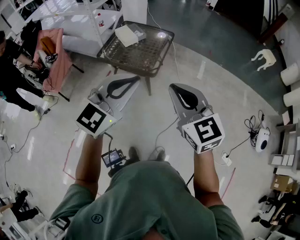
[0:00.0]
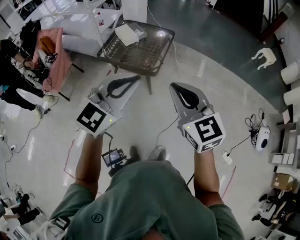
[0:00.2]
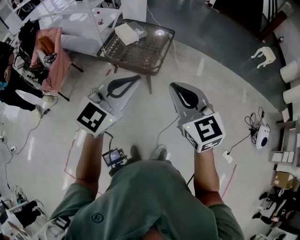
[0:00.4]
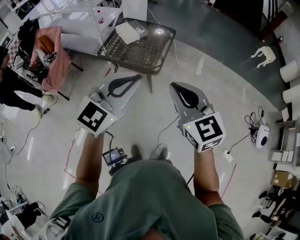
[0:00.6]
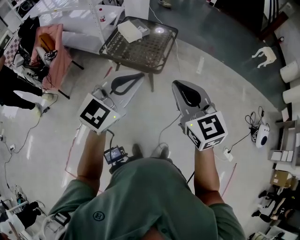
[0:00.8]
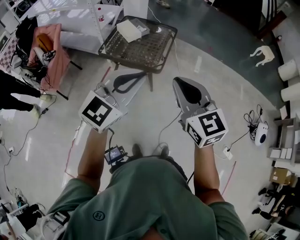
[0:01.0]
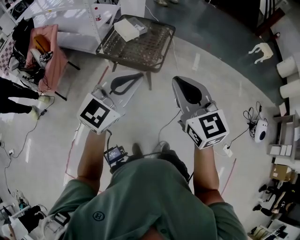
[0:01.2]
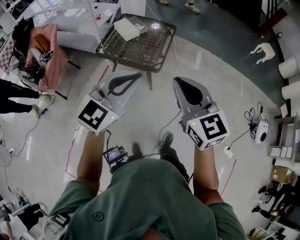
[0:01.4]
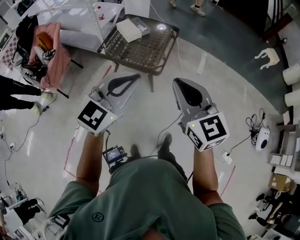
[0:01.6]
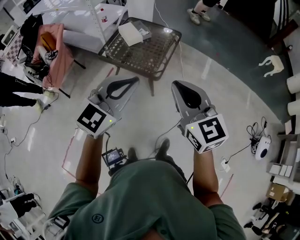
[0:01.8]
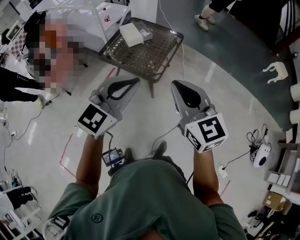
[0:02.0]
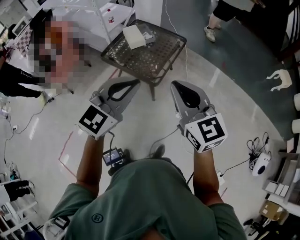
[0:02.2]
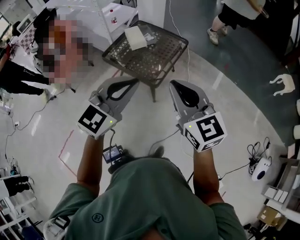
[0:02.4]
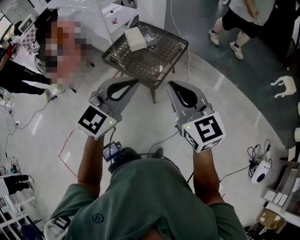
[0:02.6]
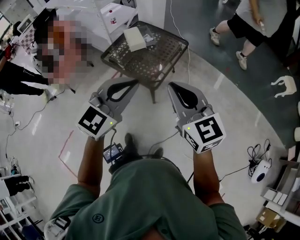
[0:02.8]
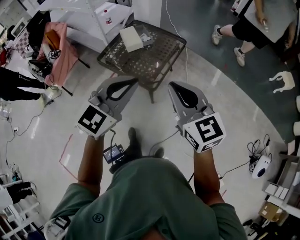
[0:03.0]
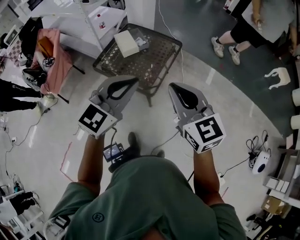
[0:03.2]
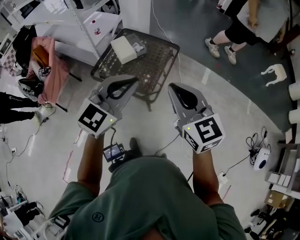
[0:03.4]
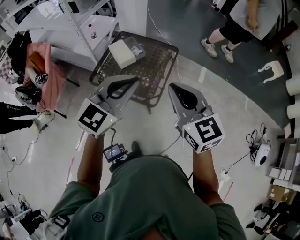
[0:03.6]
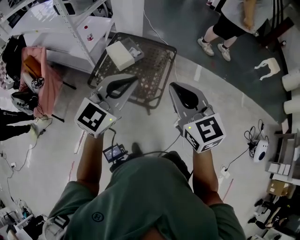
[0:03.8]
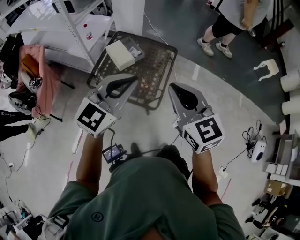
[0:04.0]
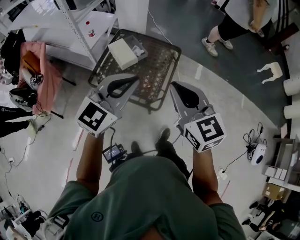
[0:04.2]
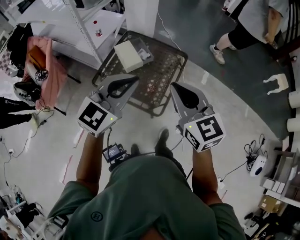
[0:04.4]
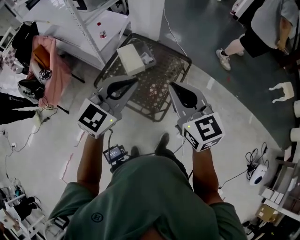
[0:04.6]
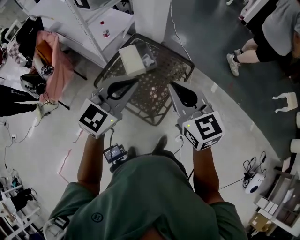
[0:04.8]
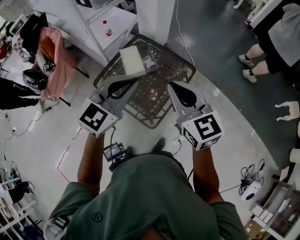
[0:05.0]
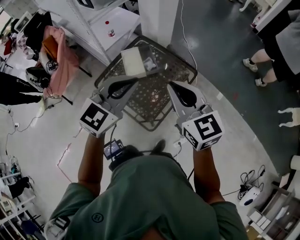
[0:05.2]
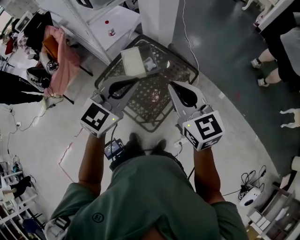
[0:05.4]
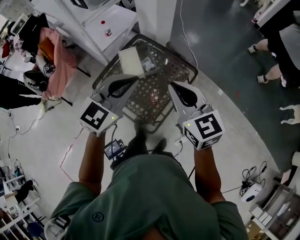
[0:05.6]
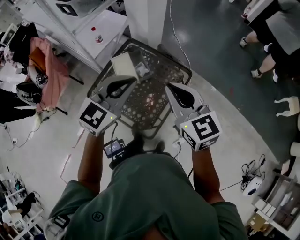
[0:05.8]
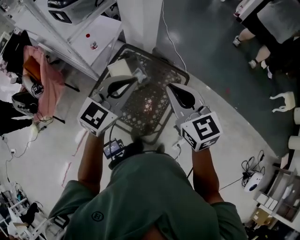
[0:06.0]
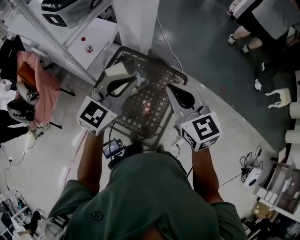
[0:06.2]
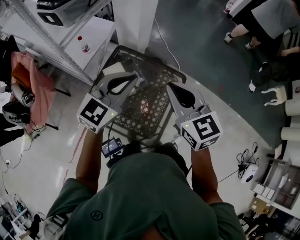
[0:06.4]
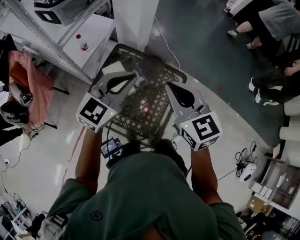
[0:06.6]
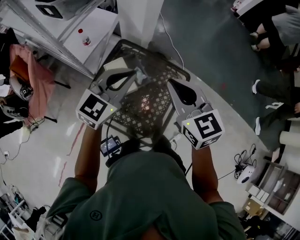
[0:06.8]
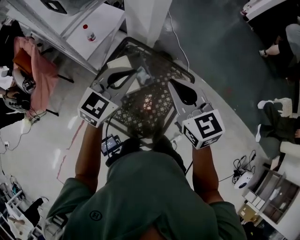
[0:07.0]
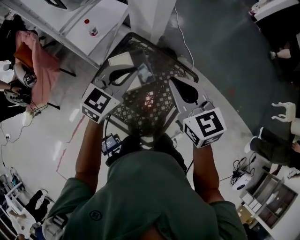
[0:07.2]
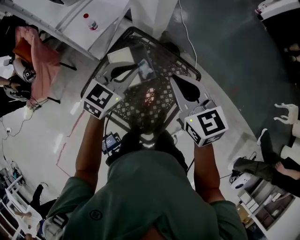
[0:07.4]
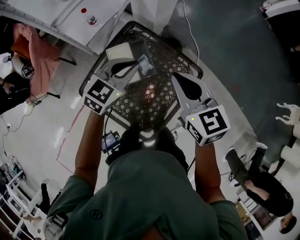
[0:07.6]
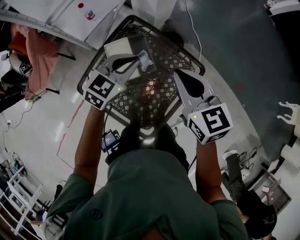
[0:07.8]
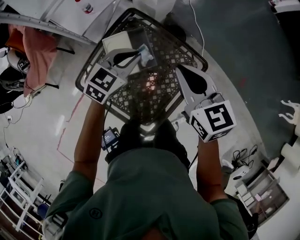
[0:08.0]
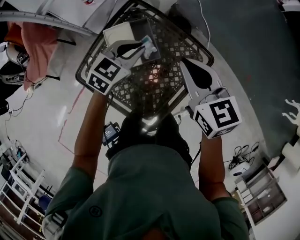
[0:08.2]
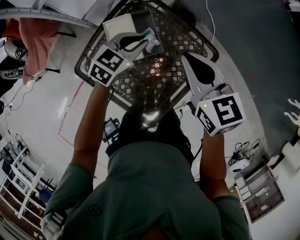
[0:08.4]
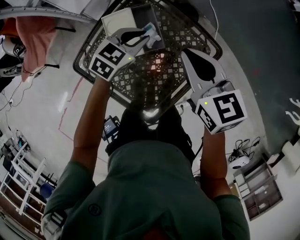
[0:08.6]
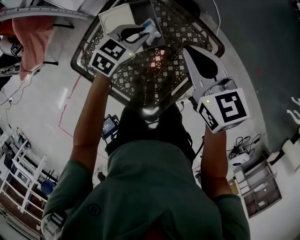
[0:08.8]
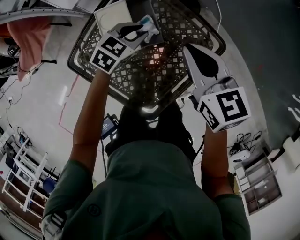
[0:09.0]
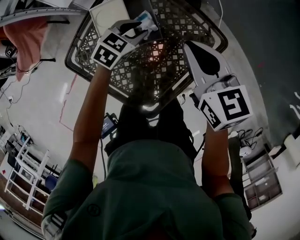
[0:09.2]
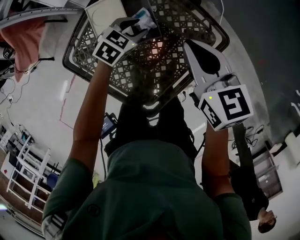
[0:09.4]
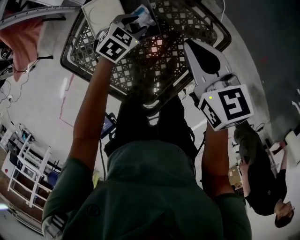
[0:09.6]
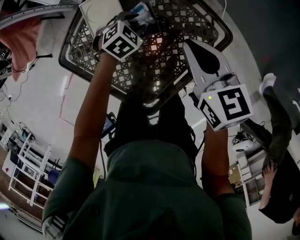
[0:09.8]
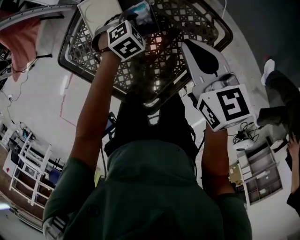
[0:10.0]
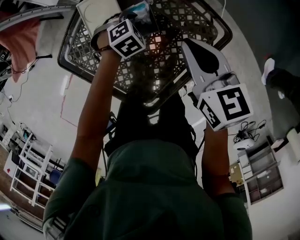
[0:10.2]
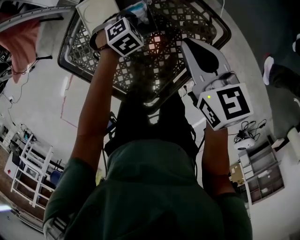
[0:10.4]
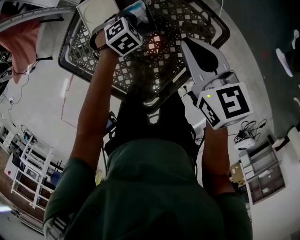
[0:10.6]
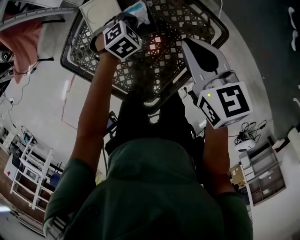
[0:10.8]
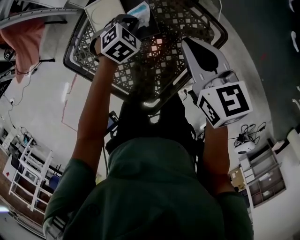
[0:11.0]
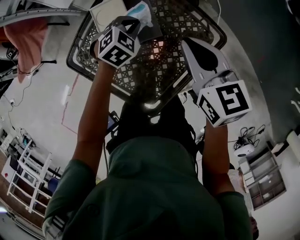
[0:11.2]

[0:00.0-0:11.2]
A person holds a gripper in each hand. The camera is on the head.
0:00.0 to 0:01.6: The grippers both shift forward and to the left by some 10 cm.
0:01.6 to 0:03.2: The grippers both shift forward and to the right by approximately 20 cm.
0:03.2 to 0:04.8: The two grippers go roughly 30 cm forward.
0:04.8 to 0:06.4: Both grippers travel together forward, about 25 cm.
0:06.4 to 0:08.0: Both grippers move downward and forward, about 25 cm. The left gripper turns by some 30 degrees.
0:08.0 to 0:09.6: The left gripper shifts some 30 cm downward, turns by approximately 30 degrees, and opens, while the right gripper shifts some 20 cm downward.
0:09.6 to 0:11.2: The two grippers go some 10 cm upward. The left gripper closes.

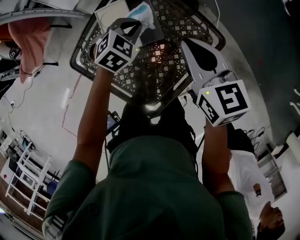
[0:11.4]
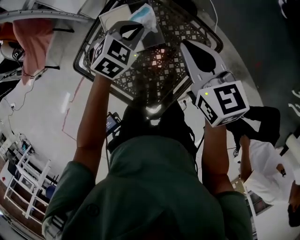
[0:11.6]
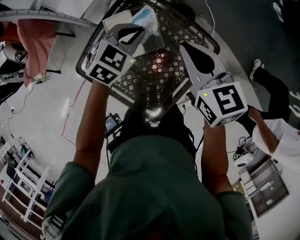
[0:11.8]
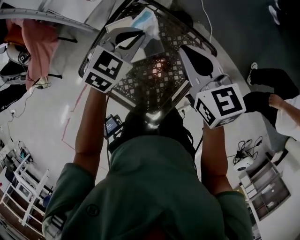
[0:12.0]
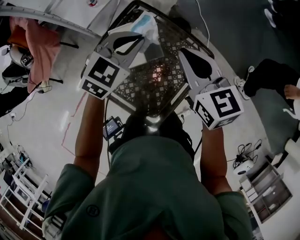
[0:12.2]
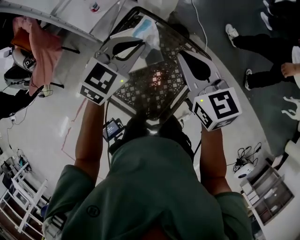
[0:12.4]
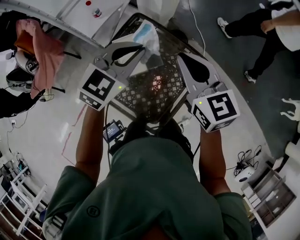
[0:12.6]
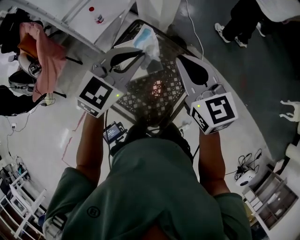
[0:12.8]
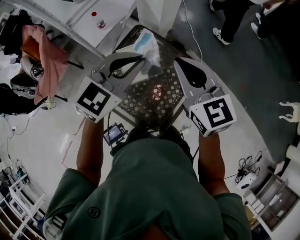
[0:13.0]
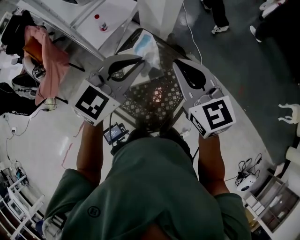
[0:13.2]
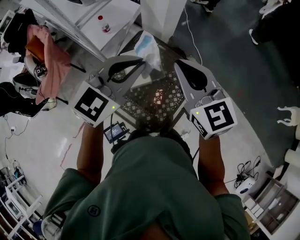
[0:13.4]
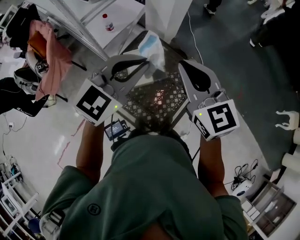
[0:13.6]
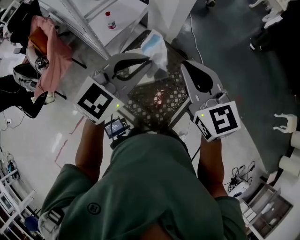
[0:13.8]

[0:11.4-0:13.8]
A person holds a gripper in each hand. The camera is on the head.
0:11.4 to 0:12.6: The left gripper moves upward, about 30 cm, and turns by some 30 degrees, while the right gripper moves upward, approximately 15 cm.
0:12.6 to 0:13.8: Both grippers move upward and backward, about 15 cm.

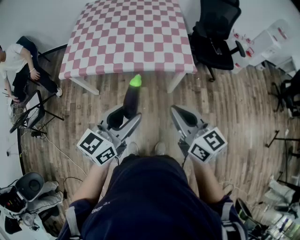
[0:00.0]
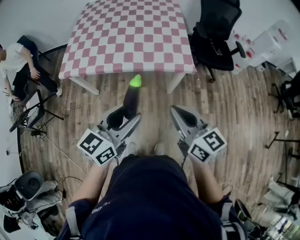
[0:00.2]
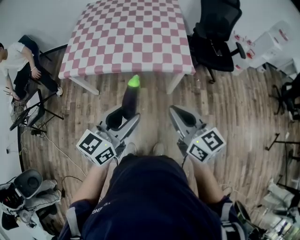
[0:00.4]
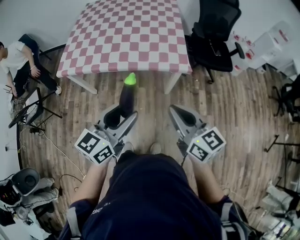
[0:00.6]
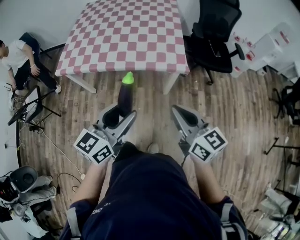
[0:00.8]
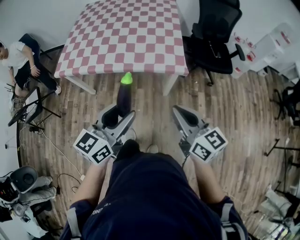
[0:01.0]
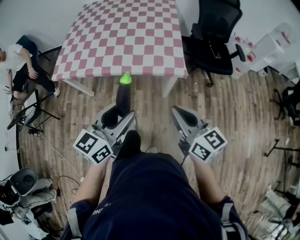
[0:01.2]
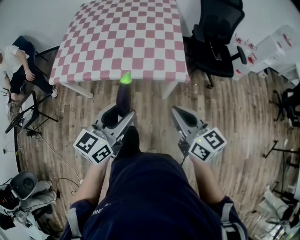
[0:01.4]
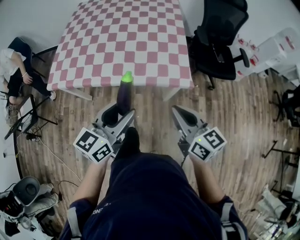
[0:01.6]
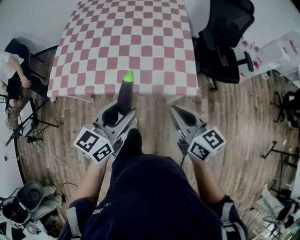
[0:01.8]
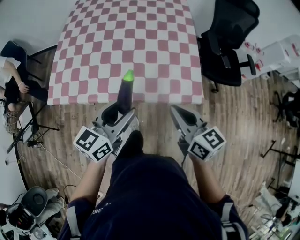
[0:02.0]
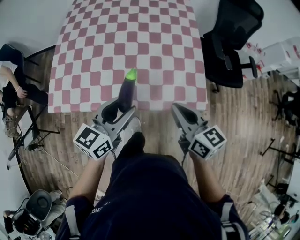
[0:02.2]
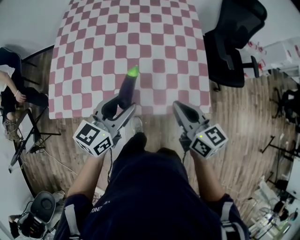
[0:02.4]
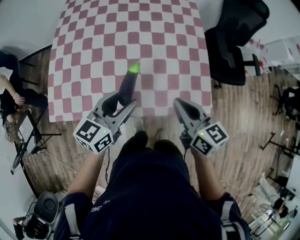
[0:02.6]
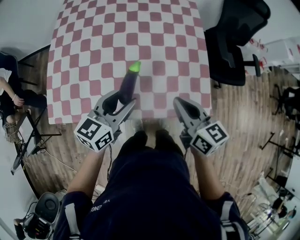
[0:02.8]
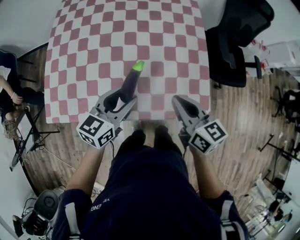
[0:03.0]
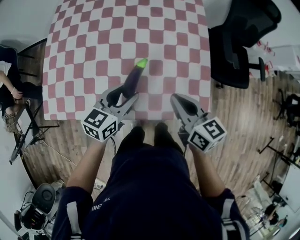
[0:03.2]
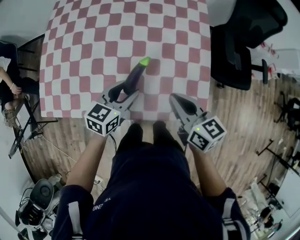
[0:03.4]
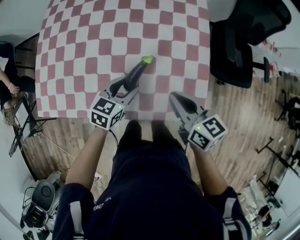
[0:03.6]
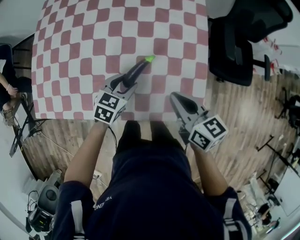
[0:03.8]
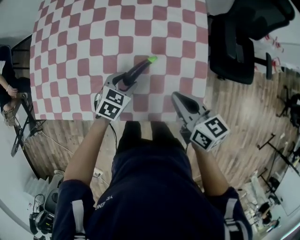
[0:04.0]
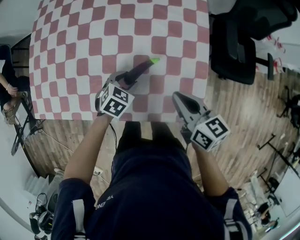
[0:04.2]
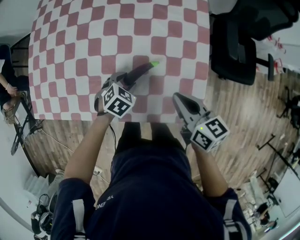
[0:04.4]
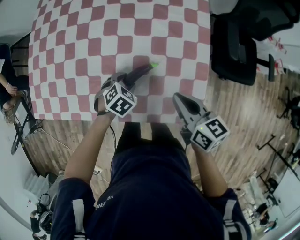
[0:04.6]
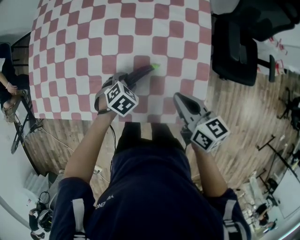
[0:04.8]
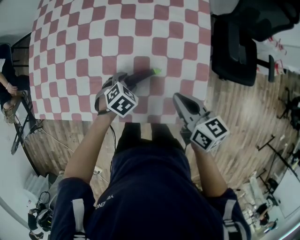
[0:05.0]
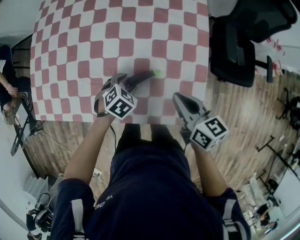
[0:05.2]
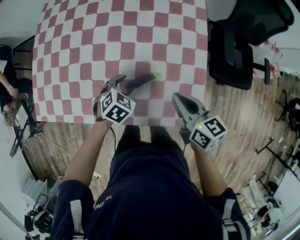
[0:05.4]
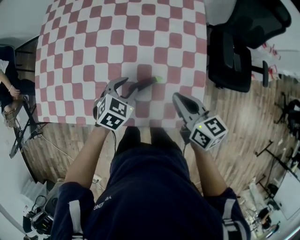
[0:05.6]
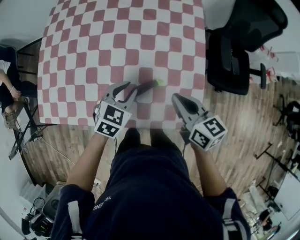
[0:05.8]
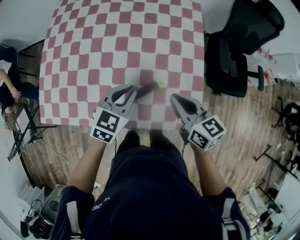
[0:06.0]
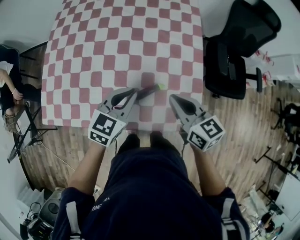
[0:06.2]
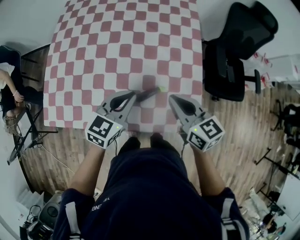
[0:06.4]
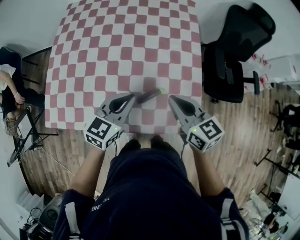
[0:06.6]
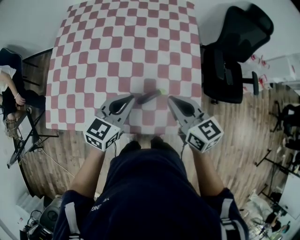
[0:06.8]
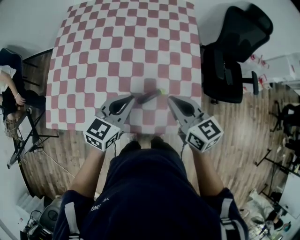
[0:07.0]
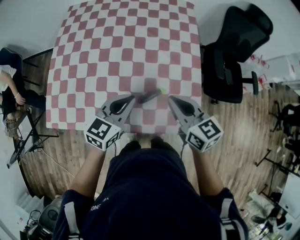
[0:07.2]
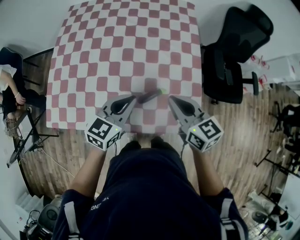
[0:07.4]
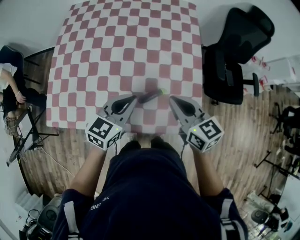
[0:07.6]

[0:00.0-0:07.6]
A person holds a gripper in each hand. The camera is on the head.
0:00.0 to 0:01.6: The left gripper travels forward by about 15 cm. Meanwhile the right gripper is displaced forward and to the right by approximately 15 cm.
0:01.6 to 0:03.0: Both grippers move forward, about 30 cm.
0:03.0 to 0:04.6: The right gripper heads downward, to the right and forward, covering about 15 cm, while the left gripper shifts roughly 25 cm downward, and points its fingers some 50 degrees further downward.
0:04.6 to 0:06.0: The right gripper goes roughly 5 cm upward. Meanwhile the left gripper travels upward by roughly 20 cm, points its fingers some 40 degrees further upward, and closes its fingers.
0:06.0 to 0:07.6: Both grippers travel together upward, approximately 5 cm.

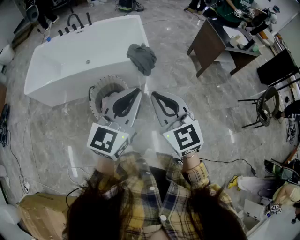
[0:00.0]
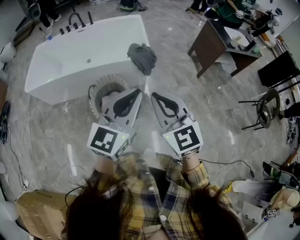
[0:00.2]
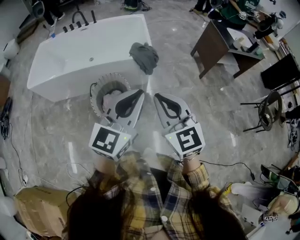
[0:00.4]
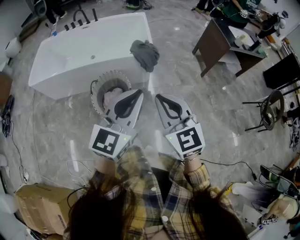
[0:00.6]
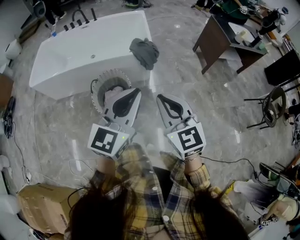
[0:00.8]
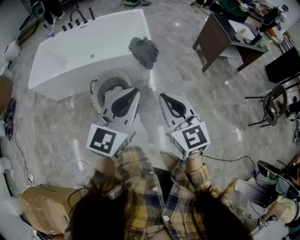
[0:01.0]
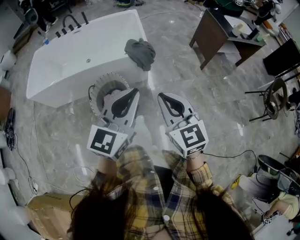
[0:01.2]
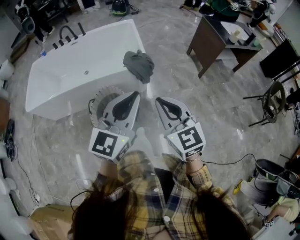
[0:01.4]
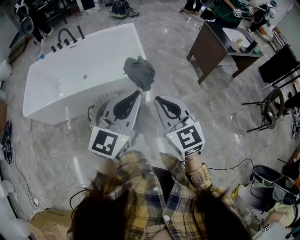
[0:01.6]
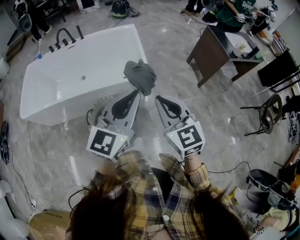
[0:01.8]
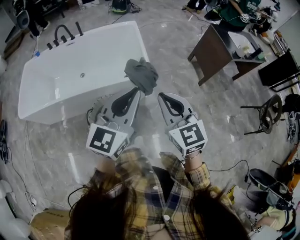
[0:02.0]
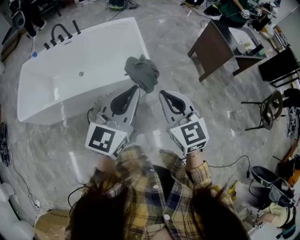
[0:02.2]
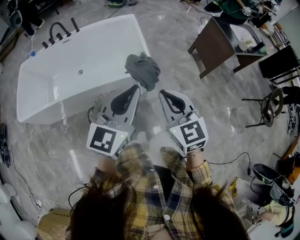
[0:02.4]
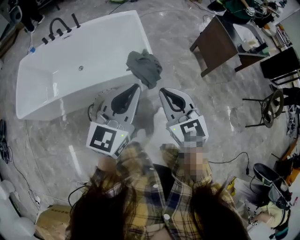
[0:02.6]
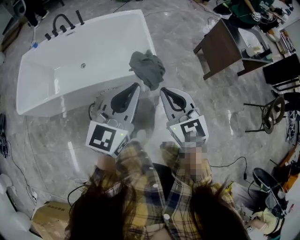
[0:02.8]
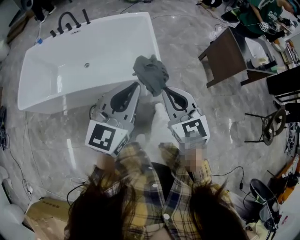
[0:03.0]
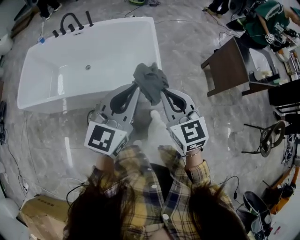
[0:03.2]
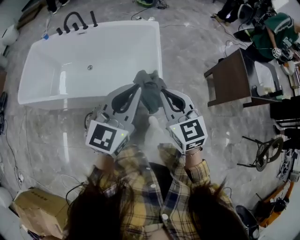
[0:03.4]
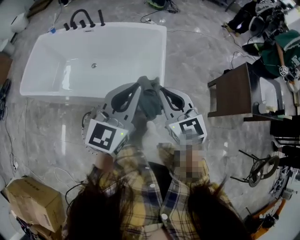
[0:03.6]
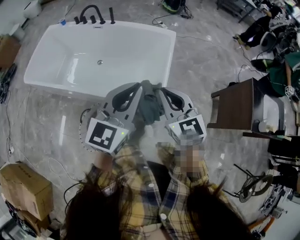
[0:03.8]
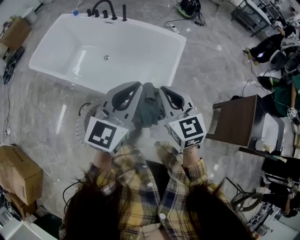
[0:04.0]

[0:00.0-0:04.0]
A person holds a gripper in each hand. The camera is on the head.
0:00.0 to 0:01.4: The left gripper goes approximately 10 cm forward. The right gripper shifts roughly 10 cm forward and to the right.
0:01.4 to 0:02.6: Both grippers travel together forward and to the left, some 20 cm.
0:02.6 to 0:04.0: The right gripper ends up about 30 cm from where it was, and turns by roughly 30 degrees. Meanwhile the left gripper changes place by roughly 25 cm, and rotates some 30 degrees.
